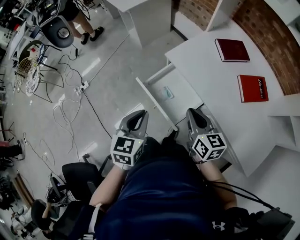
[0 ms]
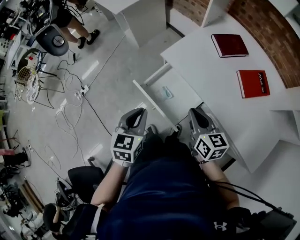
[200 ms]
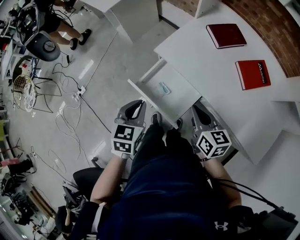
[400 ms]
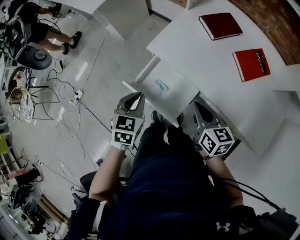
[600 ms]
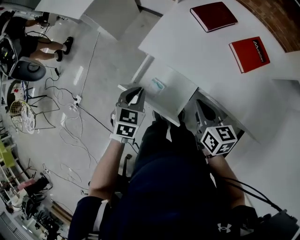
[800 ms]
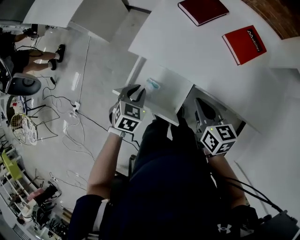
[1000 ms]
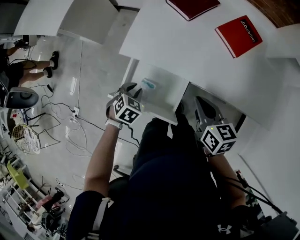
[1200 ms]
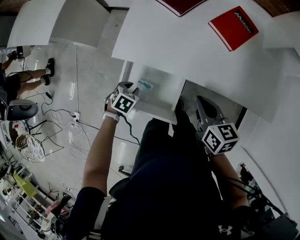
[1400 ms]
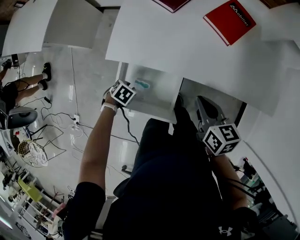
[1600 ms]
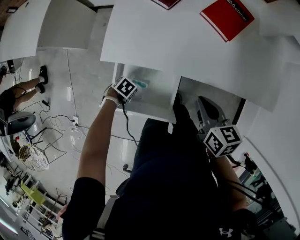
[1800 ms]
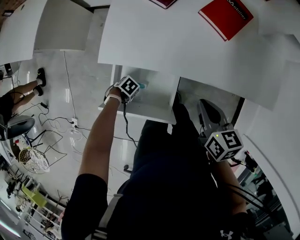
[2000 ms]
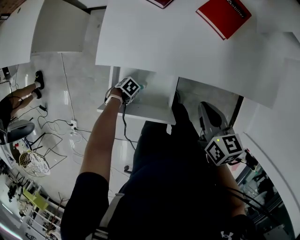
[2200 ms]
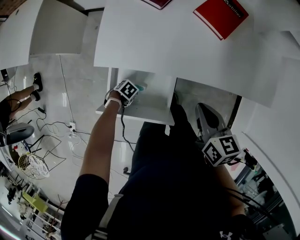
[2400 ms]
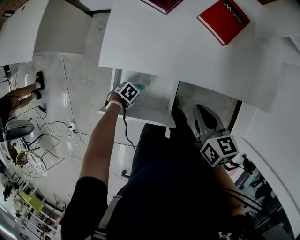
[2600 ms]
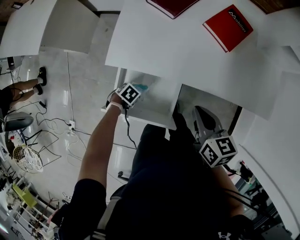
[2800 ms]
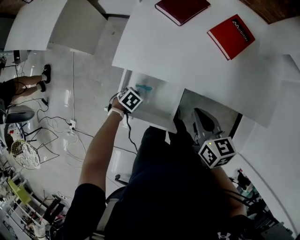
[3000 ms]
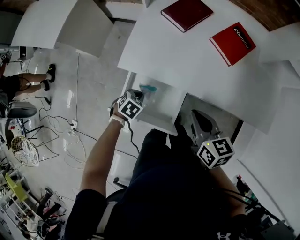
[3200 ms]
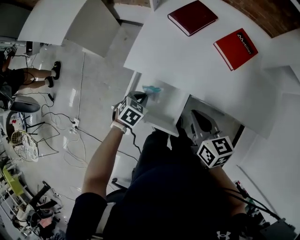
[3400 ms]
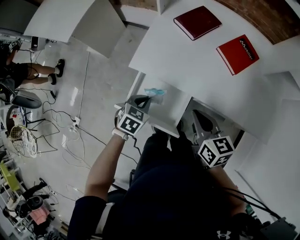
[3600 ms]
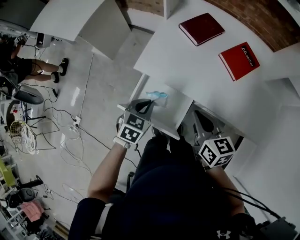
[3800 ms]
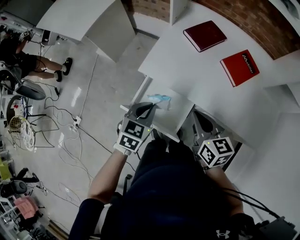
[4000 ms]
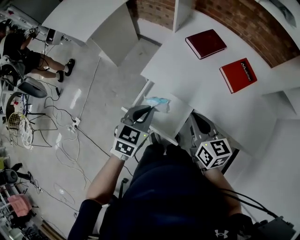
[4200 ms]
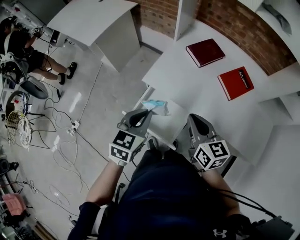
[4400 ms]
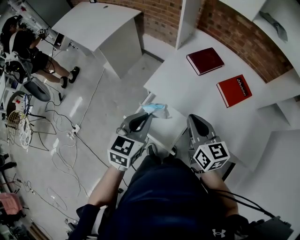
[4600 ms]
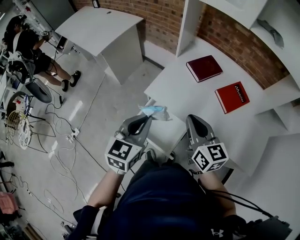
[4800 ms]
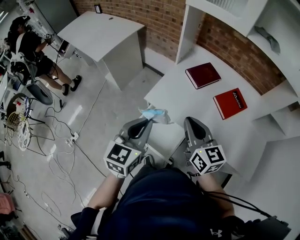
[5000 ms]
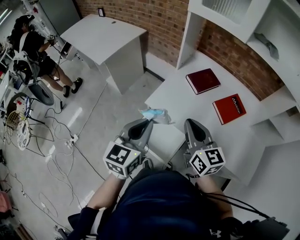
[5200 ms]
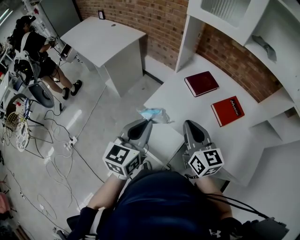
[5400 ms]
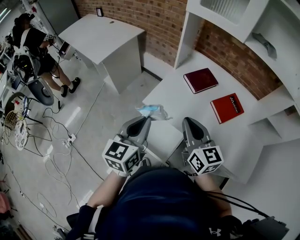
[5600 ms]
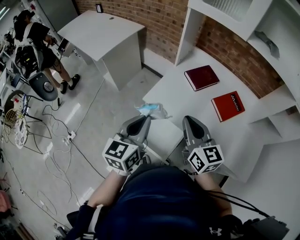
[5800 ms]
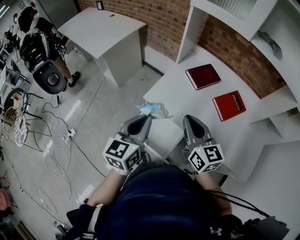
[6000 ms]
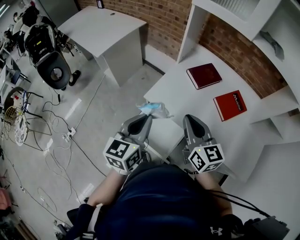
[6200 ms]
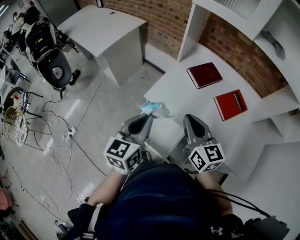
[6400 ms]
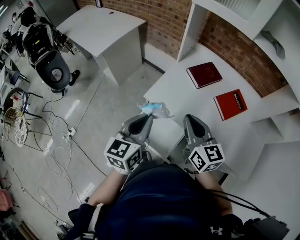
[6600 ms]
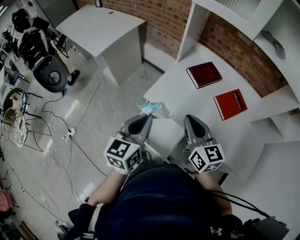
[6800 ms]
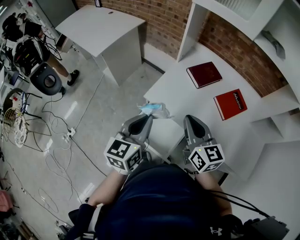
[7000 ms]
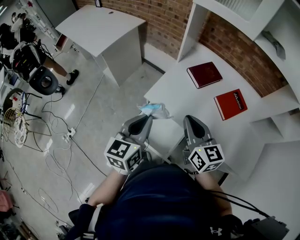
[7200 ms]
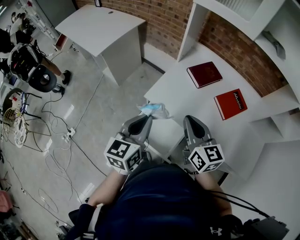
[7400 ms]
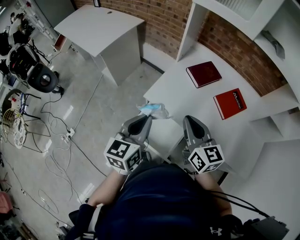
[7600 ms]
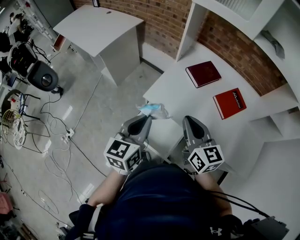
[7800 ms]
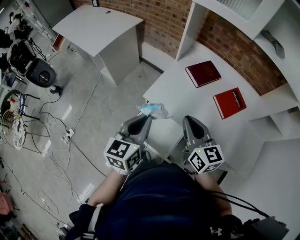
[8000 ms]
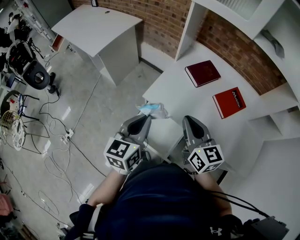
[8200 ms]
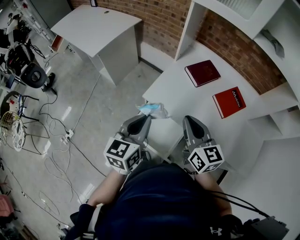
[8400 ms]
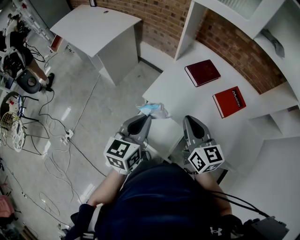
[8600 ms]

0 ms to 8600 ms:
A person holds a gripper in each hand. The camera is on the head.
0 ms to 1400 ms: The left gripper shifts approximately 25 cm downward, tilts its fingers approximately 40 degrees downward, and opens its fingers; the right gripper ends up roughly 15 cm from where it was, and turns by about 30 degrees.
1400 ms to 2800 ms: The left gripper is displaced downward by about 10 cm, turns by some 20 degrees, and closes.
2800 ms to 4400 ms: The left gripper travels upward by roughly 40 cm, and tilts its fingers some 40 degrees upward, while the right gripper goes some 10 cm upward, and swivels some 30 degrees.
4400 ms to 5800 ms: Both grippers travel together upward, roughly 10 cm. The left gripper changes its angle by some 20 degrees.
5800 ms to 8600 ms: The grippers stay close to where they were, moving slightly.

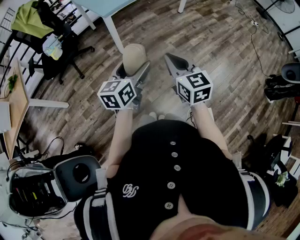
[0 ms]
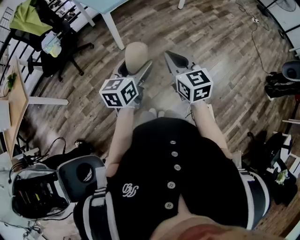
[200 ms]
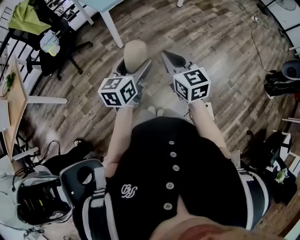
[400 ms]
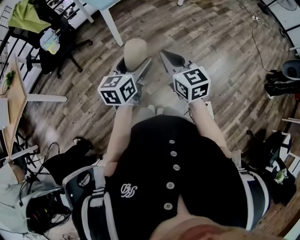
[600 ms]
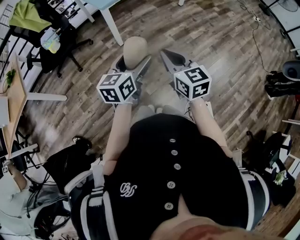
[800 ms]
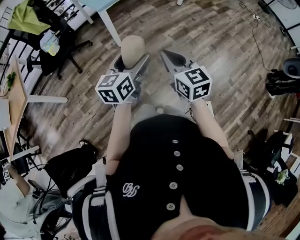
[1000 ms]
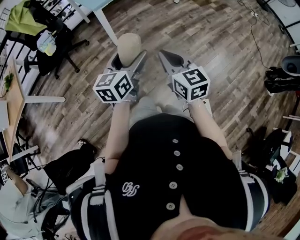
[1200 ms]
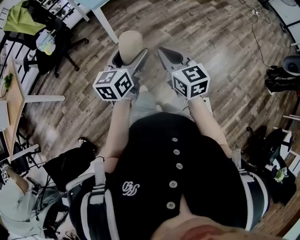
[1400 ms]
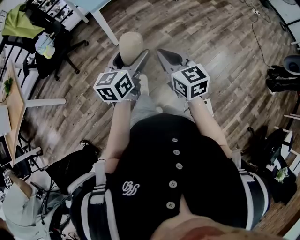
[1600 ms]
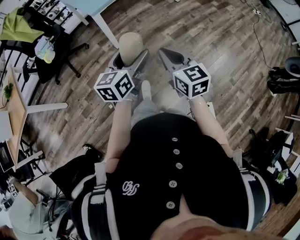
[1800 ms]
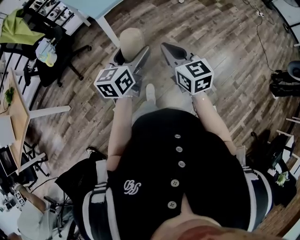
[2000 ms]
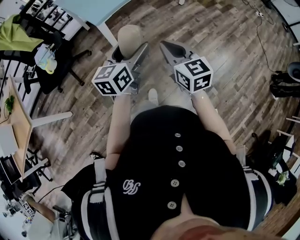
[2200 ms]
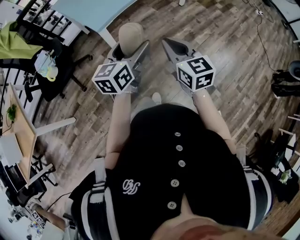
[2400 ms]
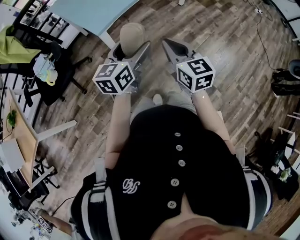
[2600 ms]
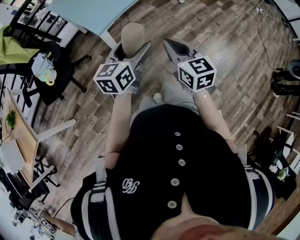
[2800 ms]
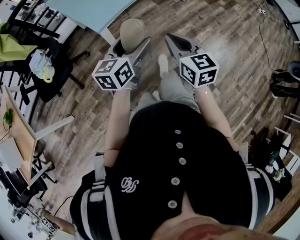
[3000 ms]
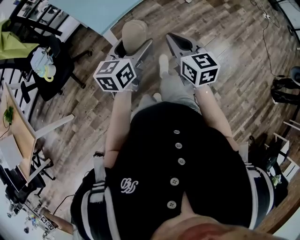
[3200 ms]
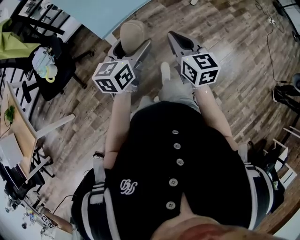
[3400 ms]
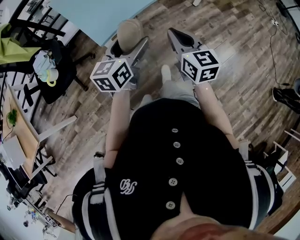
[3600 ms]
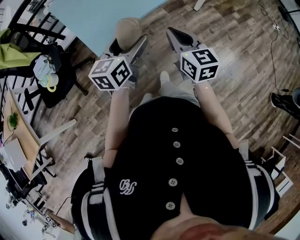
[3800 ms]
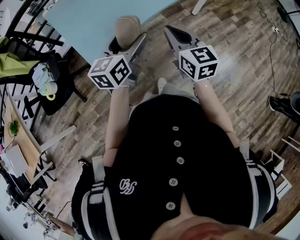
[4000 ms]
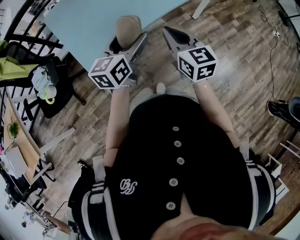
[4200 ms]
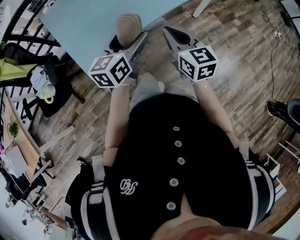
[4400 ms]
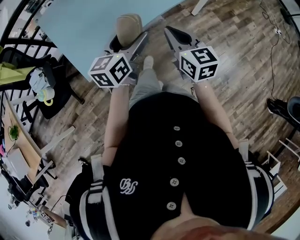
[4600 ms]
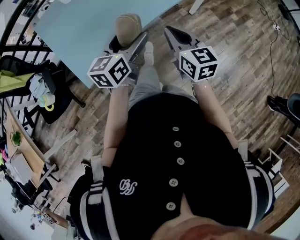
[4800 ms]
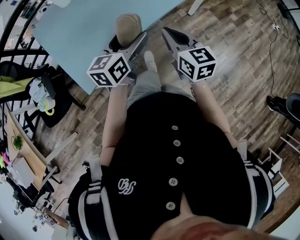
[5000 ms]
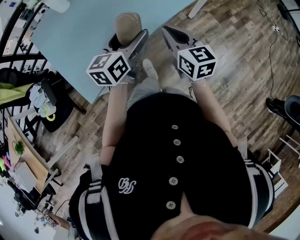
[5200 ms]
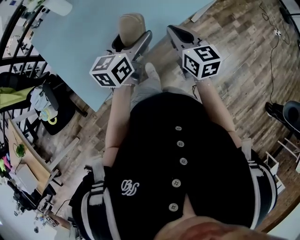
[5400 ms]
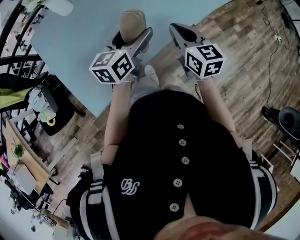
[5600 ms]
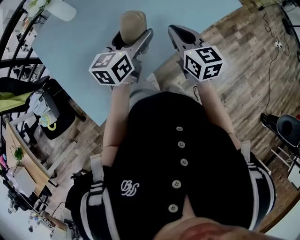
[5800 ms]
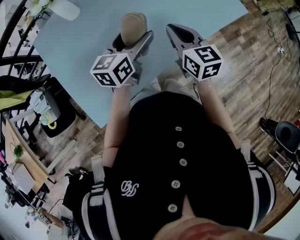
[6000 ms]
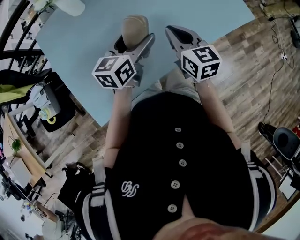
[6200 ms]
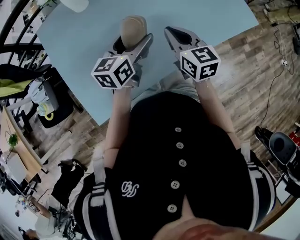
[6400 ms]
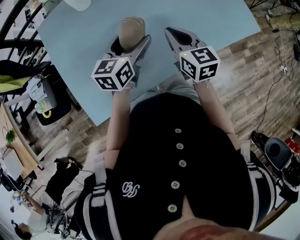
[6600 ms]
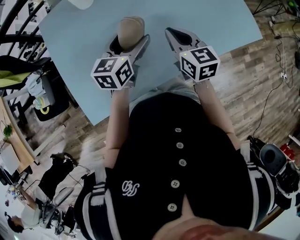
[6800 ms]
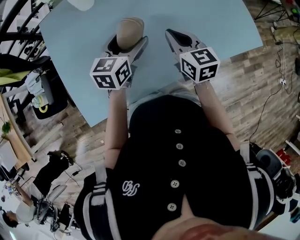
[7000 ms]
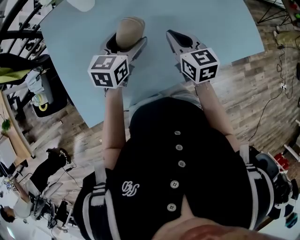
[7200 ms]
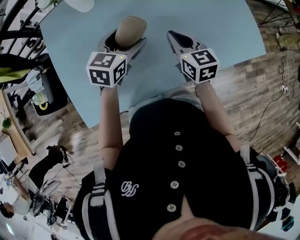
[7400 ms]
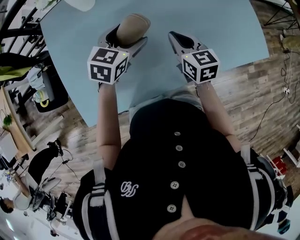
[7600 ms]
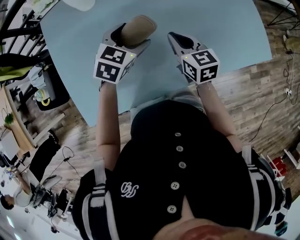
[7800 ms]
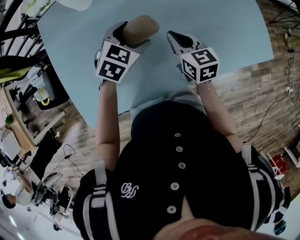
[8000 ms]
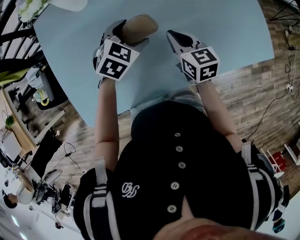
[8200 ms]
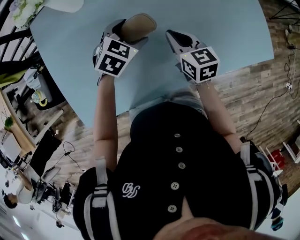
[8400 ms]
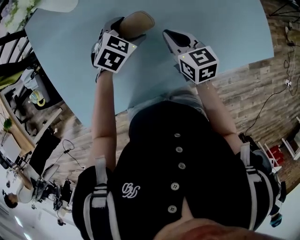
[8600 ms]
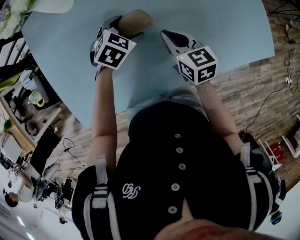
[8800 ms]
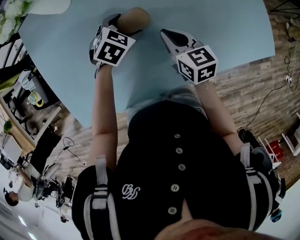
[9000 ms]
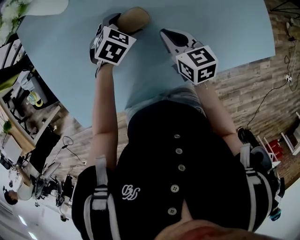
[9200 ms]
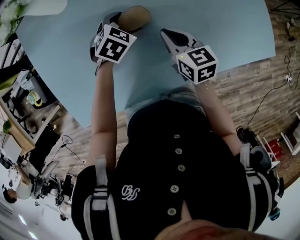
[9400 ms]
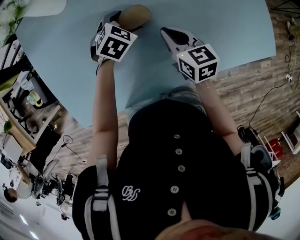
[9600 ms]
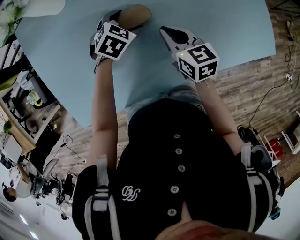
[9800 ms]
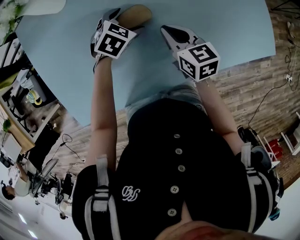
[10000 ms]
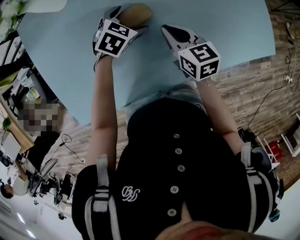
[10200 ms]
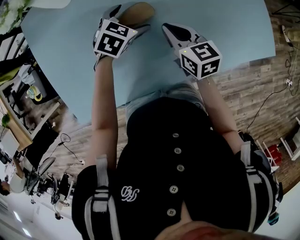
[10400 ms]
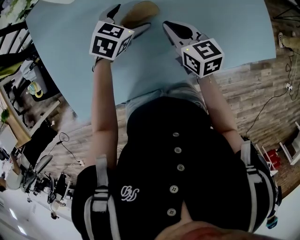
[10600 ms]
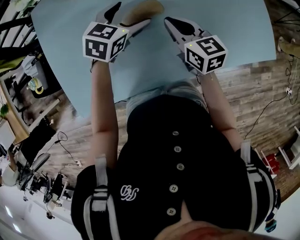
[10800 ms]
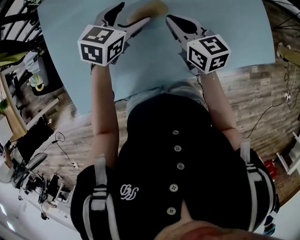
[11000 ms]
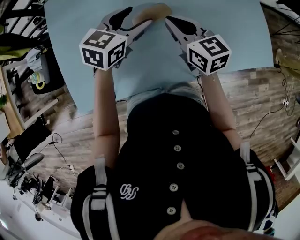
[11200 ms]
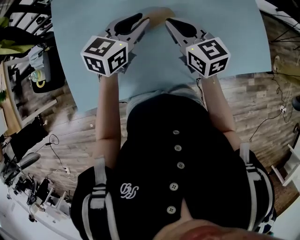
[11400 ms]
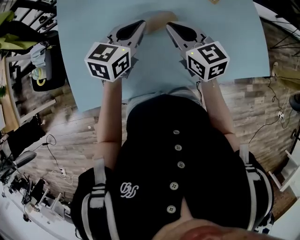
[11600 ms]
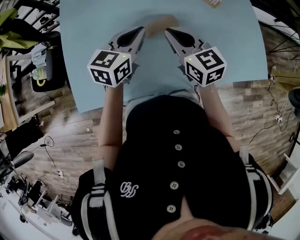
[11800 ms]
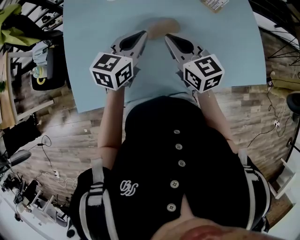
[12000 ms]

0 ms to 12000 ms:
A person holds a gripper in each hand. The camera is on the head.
0 ms to 1600 ms: The left gripper travels to the right by roughly 5 cm, while the right gripper ends up some 5 cm from where it was.
1600 ms to 3000 ms: Both grippers travel together forward, some 35 cm.
3000 ms to 4400 ms: The two grippers go about 30 cm forward.
4400 ms to 6000 ms: The two grippers go approximately 30 cm forward.
6000 ms to 7600 ms: The left gripper is displaced forward by roughly 10 cm, and rotates about 30 degrees. Meanwhile the right gripper goes roughly 15 cm forward and downward, and swivels some 20 degrees.
7600 ms to 9000 ms: The right gripper shifts about 5 cm downward, while the left gripper moves downward and forward, about 15 cm, and turns by some 30 degrees.
9000 ms to 10400 ms: The grippers make only small movements.
10400 ms to 12000 ms: The right gripper goes some 15 cm upward, to the left and backward, and changes its angle by some 20 degrees. Meanwhile the left gripper shifts about 20 cm upward, backward and to the left, angles its fingers upward, by about 30 degrees, and closes up.

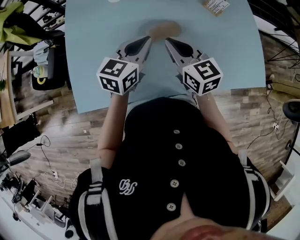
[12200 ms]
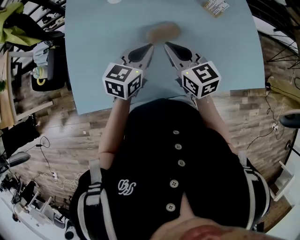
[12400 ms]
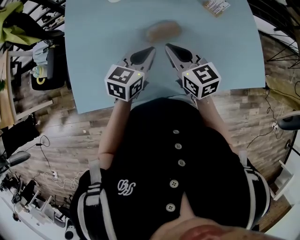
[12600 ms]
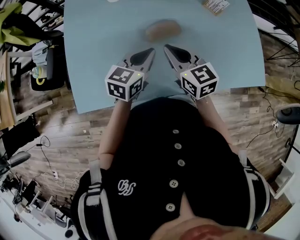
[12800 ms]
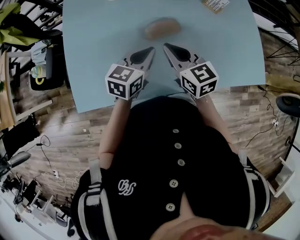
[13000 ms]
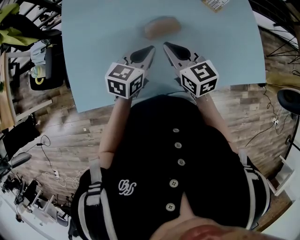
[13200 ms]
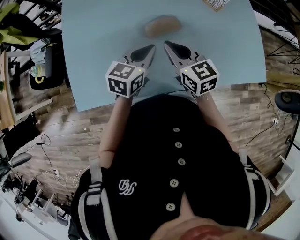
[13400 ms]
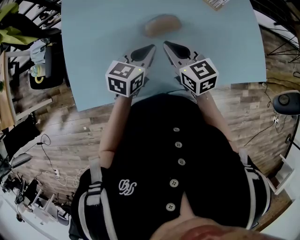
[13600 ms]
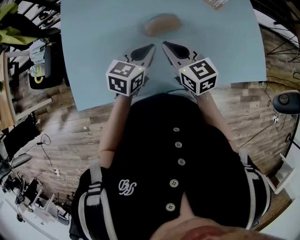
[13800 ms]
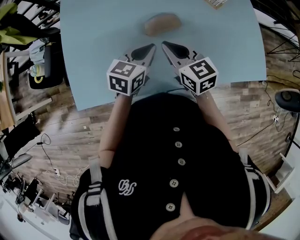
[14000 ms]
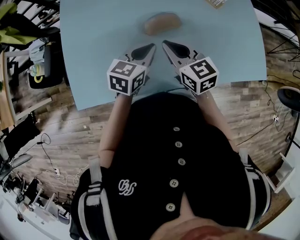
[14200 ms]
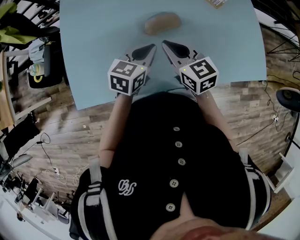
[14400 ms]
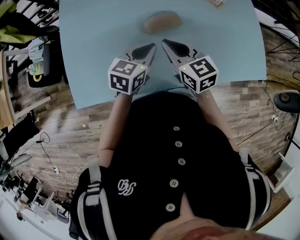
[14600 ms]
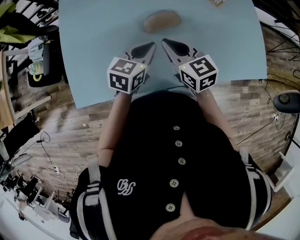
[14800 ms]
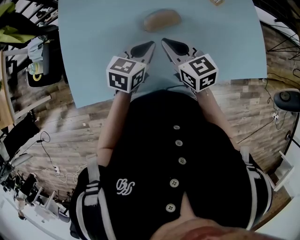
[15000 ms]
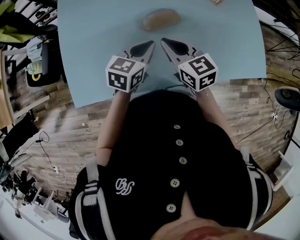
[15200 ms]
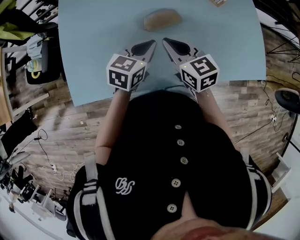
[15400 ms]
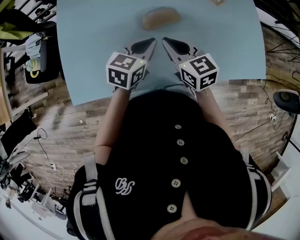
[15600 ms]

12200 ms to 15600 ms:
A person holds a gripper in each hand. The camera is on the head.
12200 ms to 13800 ms: The left gripper moves downward, approximately 5 cm.
13800 ms to 15600 ms: The grippers make only small movements.
